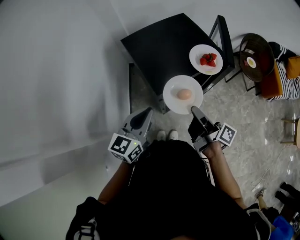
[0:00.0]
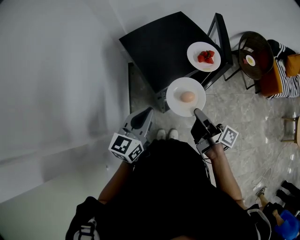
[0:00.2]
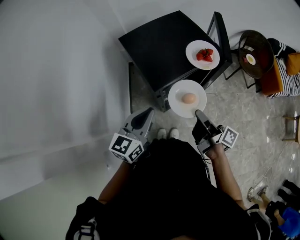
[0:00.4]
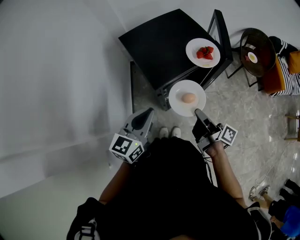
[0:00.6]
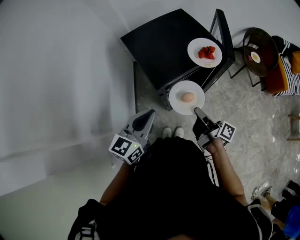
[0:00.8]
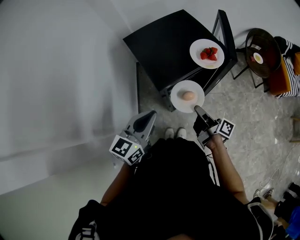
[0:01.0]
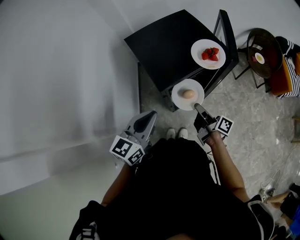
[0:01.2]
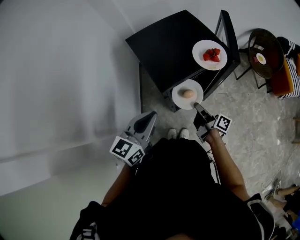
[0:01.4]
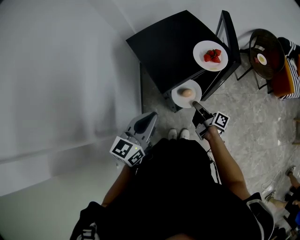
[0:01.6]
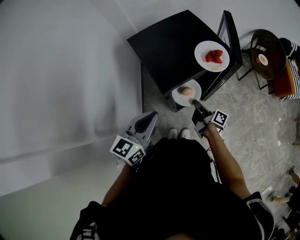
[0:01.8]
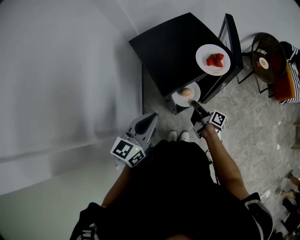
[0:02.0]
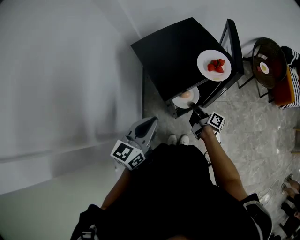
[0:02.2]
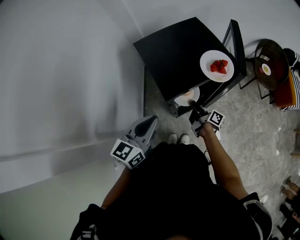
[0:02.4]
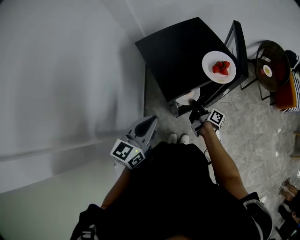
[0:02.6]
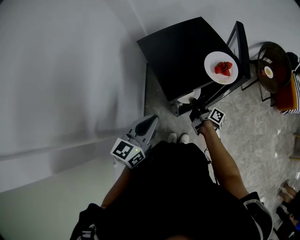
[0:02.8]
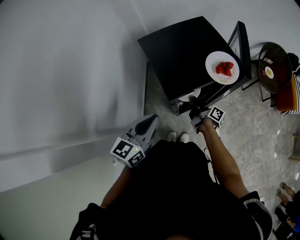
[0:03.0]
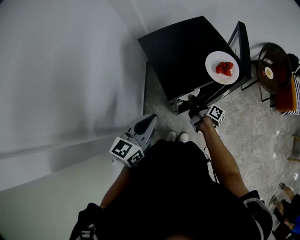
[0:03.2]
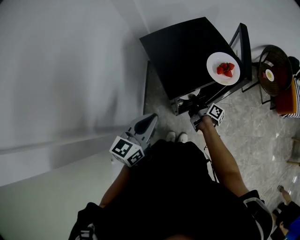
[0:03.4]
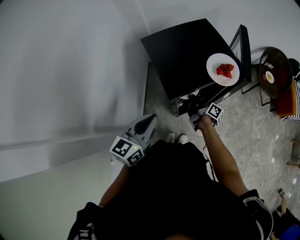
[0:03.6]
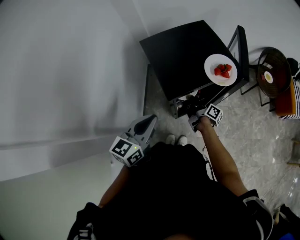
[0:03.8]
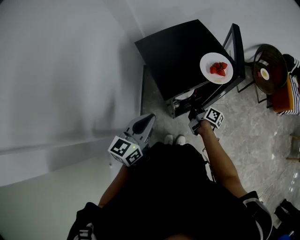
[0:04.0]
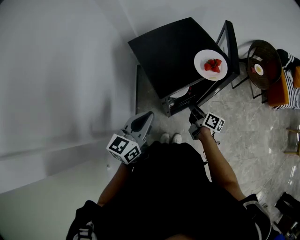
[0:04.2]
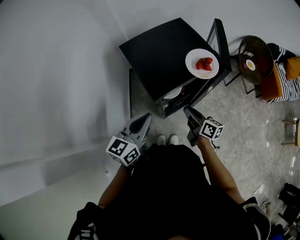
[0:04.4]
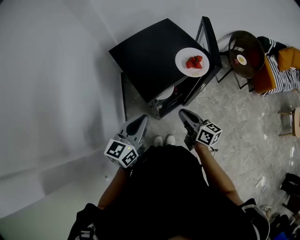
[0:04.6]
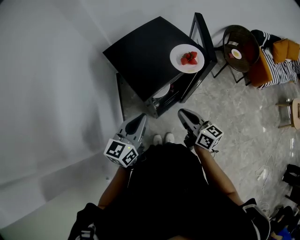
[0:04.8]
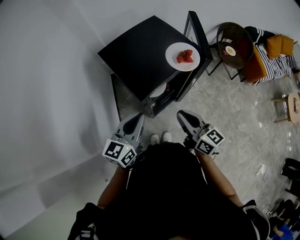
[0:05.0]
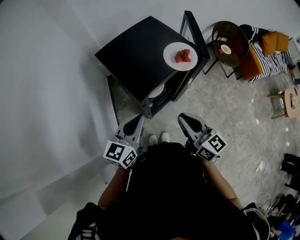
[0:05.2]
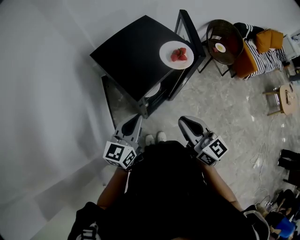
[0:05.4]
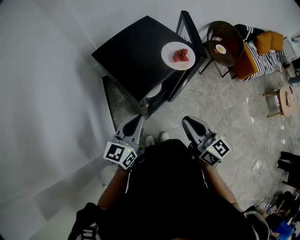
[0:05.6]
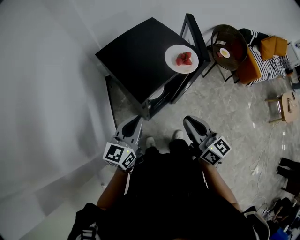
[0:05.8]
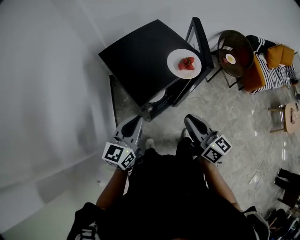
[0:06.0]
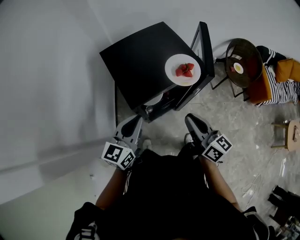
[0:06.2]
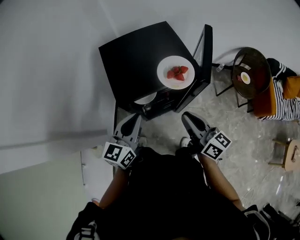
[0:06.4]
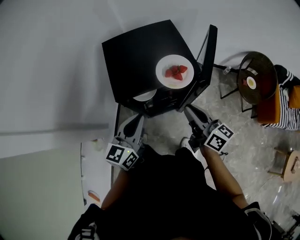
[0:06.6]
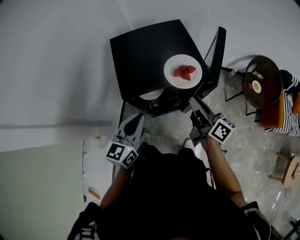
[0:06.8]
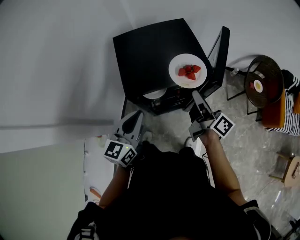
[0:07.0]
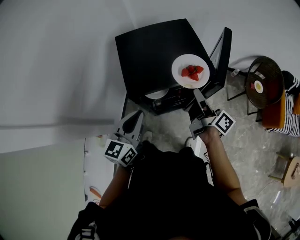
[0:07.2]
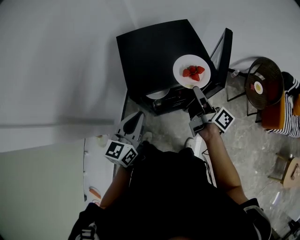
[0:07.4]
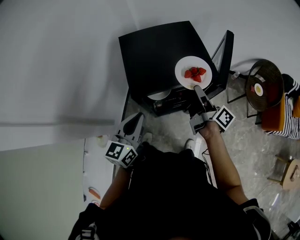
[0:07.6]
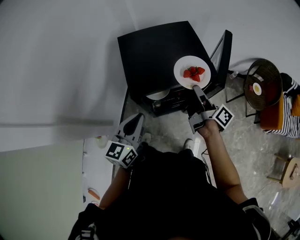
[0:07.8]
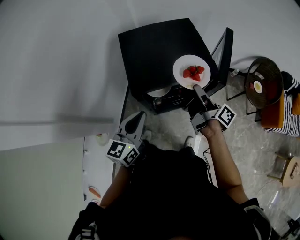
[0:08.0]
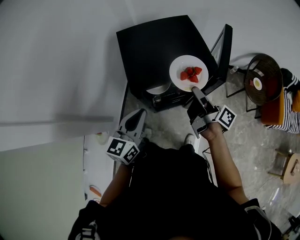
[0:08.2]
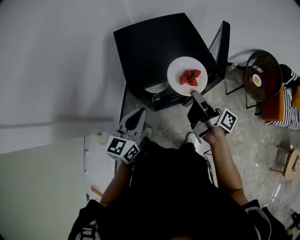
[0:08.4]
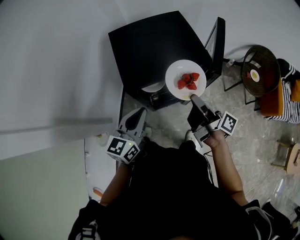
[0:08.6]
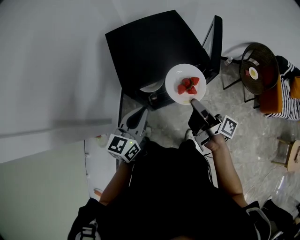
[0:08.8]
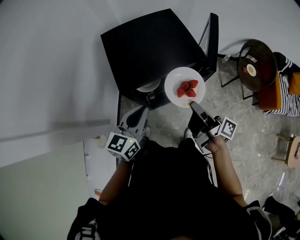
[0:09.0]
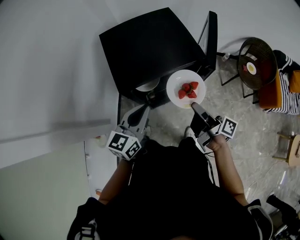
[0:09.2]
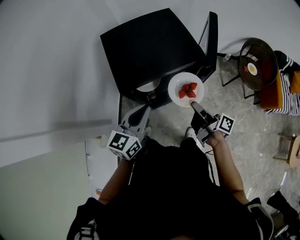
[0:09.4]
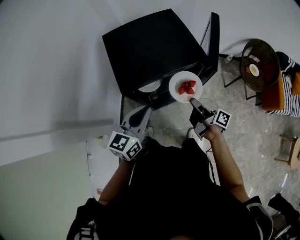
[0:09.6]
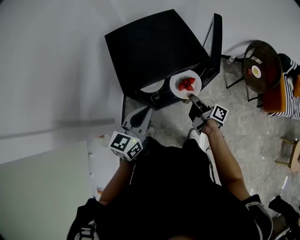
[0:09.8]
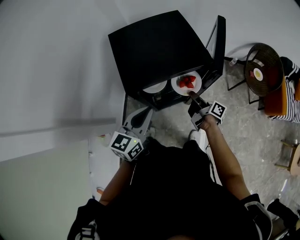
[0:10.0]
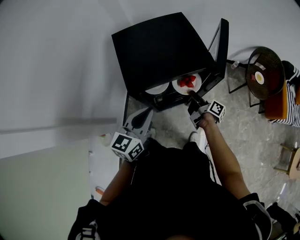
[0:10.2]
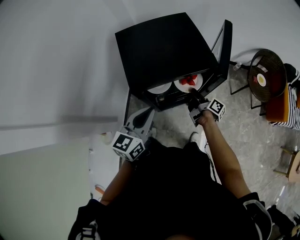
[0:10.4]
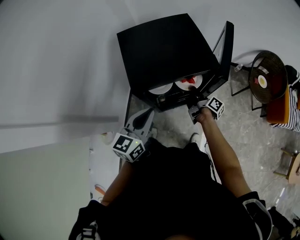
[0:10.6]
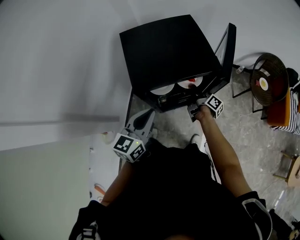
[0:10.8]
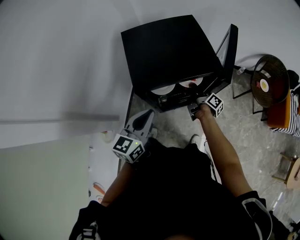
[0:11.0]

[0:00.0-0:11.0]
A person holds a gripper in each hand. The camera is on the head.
0:00.0 to 0:01.6: The right gripper moves downward, about 20 cm.
0:01.6 to 0:03.2: The right gripper goes roughly 10 cm forward.
0:03.2 to 0:04.8: The right gripper heads upward and backward, covering some 20 cm, and rotates around the line of its fingers by roughly 50 degrees, counterclockwise from behind.
0:04.8 to 0:06.2: The right gripper goes about 10 cm to the right and upward.
0:06.2 to 0:07.8: The left gripper reaches some 10 cm to the right, then returns, while the right gripper heads forward and to the right, covering roughly 15 cm, and twists roughly 50 degrees clockwise, seen from behind.
0:07.8 to 0:09.4: The left gripper is displaced to the right by about 5 cm; the right gripper heads backward and downward, covering about 15 cm.
0:09.4 to 0:11.0: The right gripper heads forward and downward, covering about 20 cm.

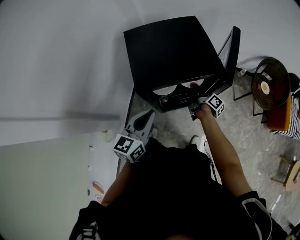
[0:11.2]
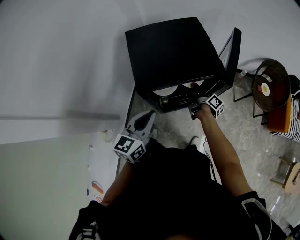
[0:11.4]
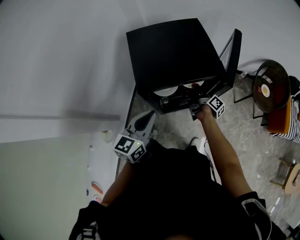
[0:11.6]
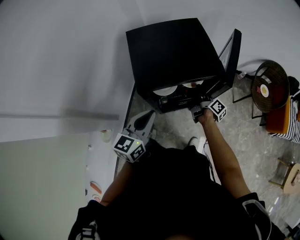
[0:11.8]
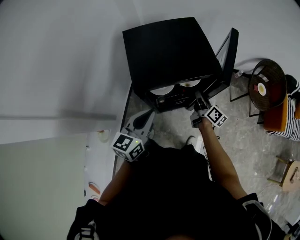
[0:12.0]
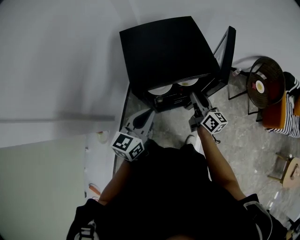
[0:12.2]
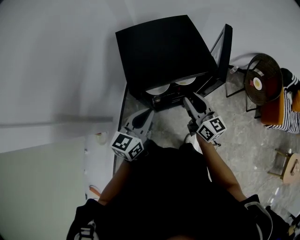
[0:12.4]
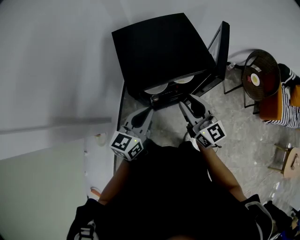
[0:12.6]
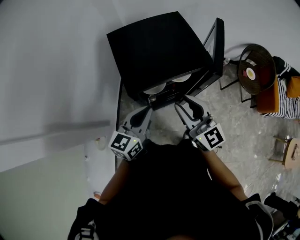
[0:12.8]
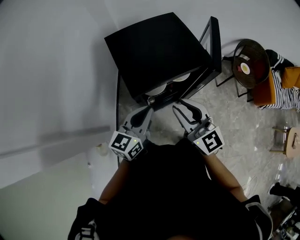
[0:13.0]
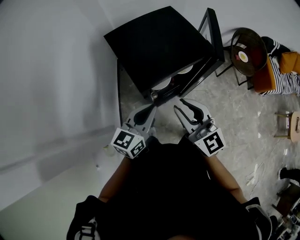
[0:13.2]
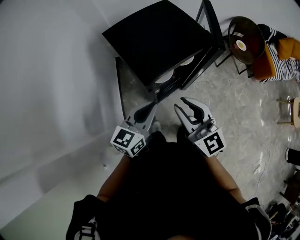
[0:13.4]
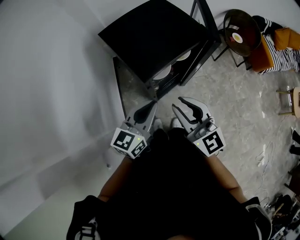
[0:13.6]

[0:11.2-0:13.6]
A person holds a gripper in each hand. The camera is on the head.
0:11.2 to 0:12.4: The right gripper moves upward and backward, some 20 cm, twists approximately 60 degrees counterclockwise, seen from behind, and opens.
0:12.4 to 0:13.6: The right gripper travels to the left, upward and backward by approximately 20 cm, and changes its angle by some 30 degrees; the left gripper goes some 5 cm to the left, and turns by about 20 degrees.

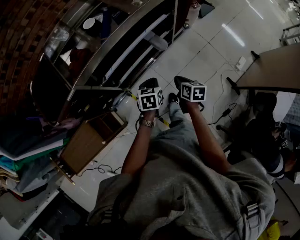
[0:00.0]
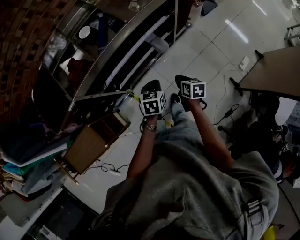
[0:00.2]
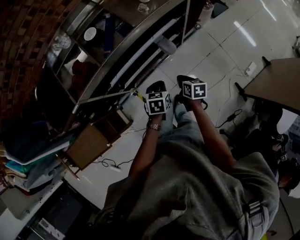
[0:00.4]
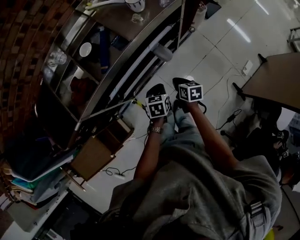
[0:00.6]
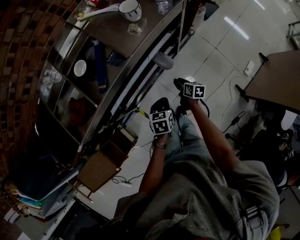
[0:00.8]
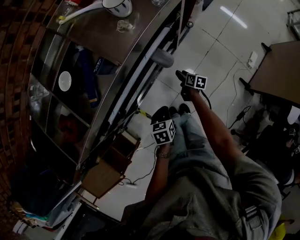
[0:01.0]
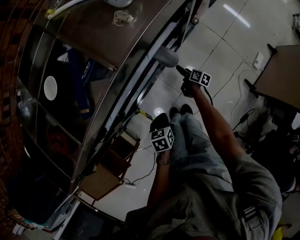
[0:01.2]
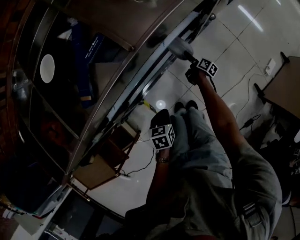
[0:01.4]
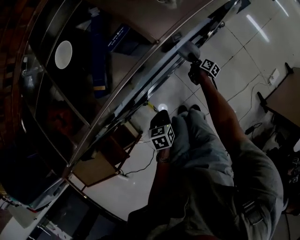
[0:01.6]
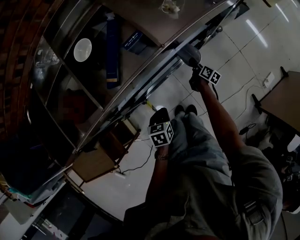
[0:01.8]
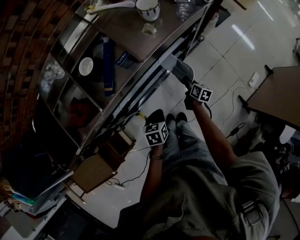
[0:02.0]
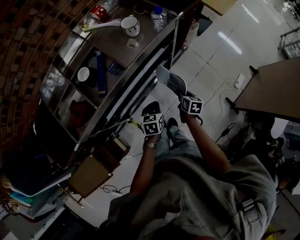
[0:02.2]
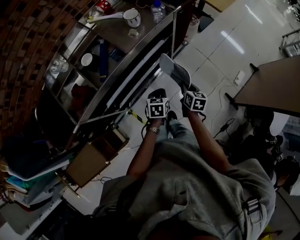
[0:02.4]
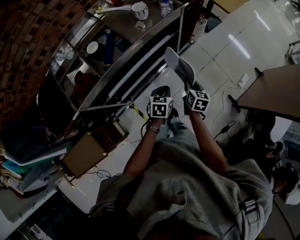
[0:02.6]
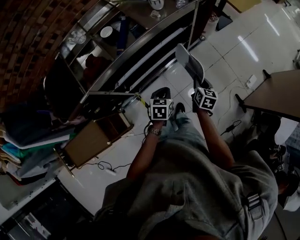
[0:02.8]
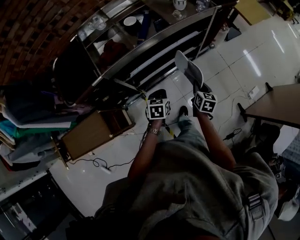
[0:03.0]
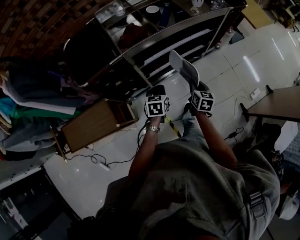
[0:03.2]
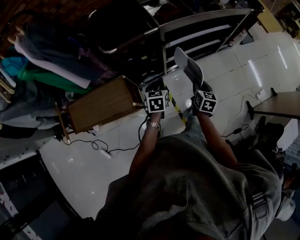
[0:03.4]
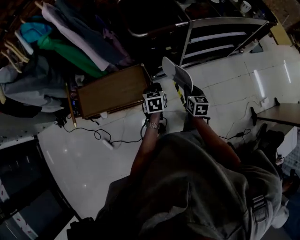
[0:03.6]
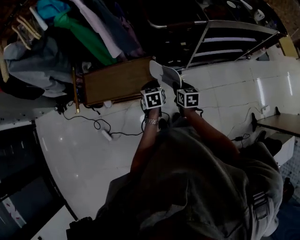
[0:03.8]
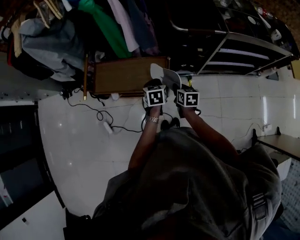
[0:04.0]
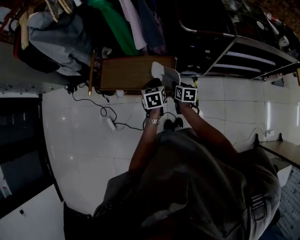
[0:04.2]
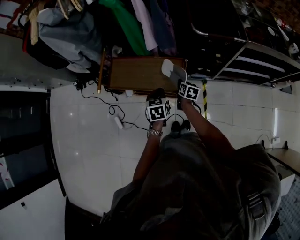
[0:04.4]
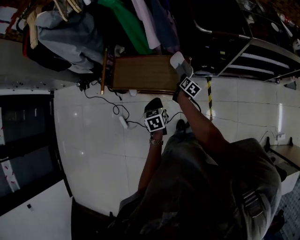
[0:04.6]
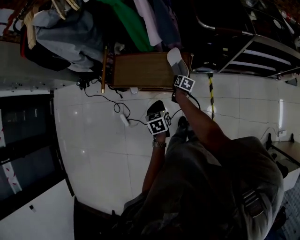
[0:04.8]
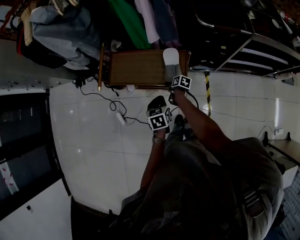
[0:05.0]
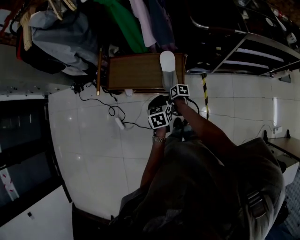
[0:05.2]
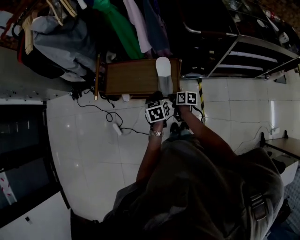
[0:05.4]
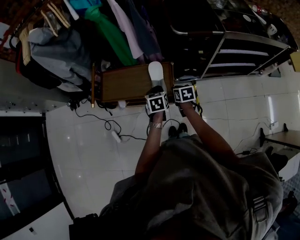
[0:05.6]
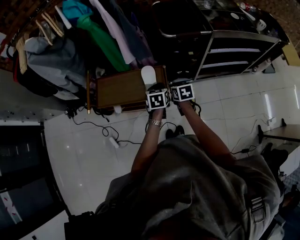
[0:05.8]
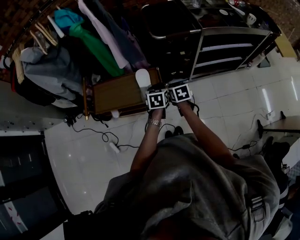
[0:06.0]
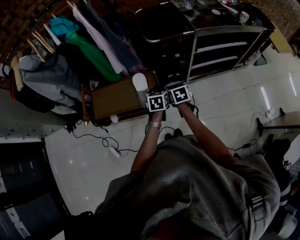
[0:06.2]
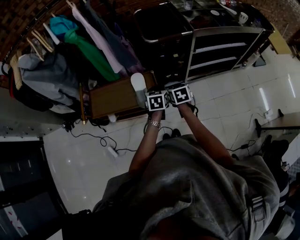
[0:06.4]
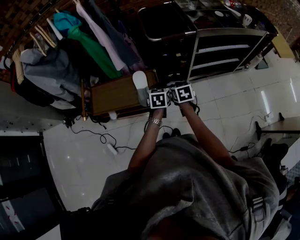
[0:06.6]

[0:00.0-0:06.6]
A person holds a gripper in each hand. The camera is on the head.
0:00.0 to 0:01.6: The left gripper travels downward by about 25 cm. Meanwhile the right gripper goes roughly 60 cm downward and forward, swivels about 40 degrees, and opens, then closes once more.
0:01.6 to 0:03.2: The right gripper shifts some 60 cm upward and backward, and rolls counterclockwise, seen from behind, by about 60 degrees; the left gripper moves upward and backward, roughly 35 cm.
0:03.2 to 0:05.0: The two grippers travel together, approximately 70 cm. The left gripper swivels roughly 40 degrees. Meanwhile the right gripper swivels some 60 degrees, and opens up.
0:05.0 to 0:06.6: The left gripper ends up roughly 25 cm from where it was, and swivels approximately 30 degrees. The right gripper shifts some 25 cm upward, turns by approximately 50 degrees, and closes up.

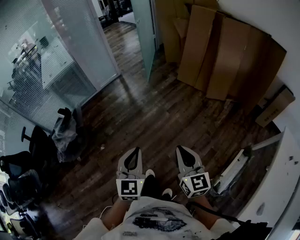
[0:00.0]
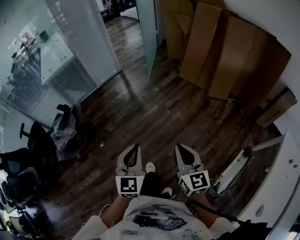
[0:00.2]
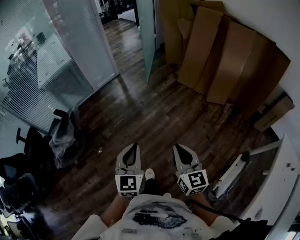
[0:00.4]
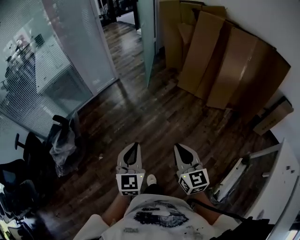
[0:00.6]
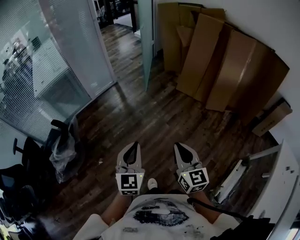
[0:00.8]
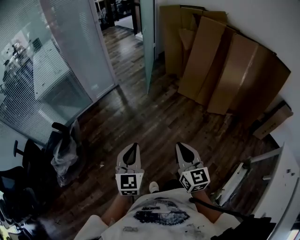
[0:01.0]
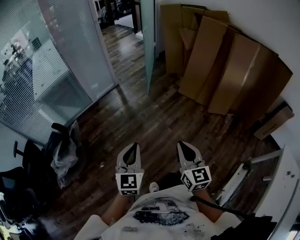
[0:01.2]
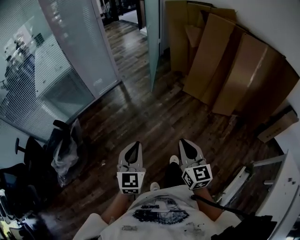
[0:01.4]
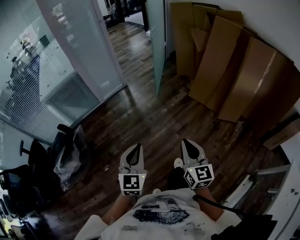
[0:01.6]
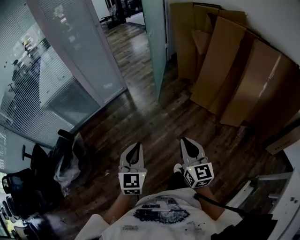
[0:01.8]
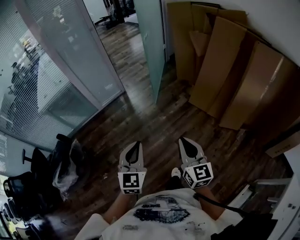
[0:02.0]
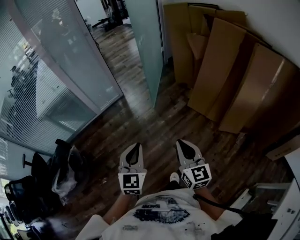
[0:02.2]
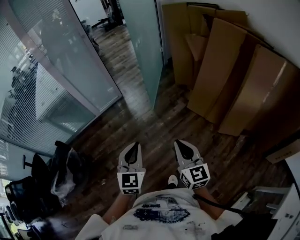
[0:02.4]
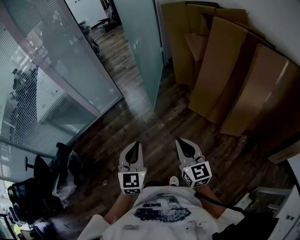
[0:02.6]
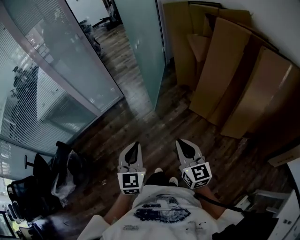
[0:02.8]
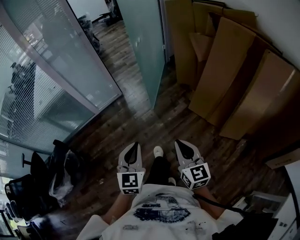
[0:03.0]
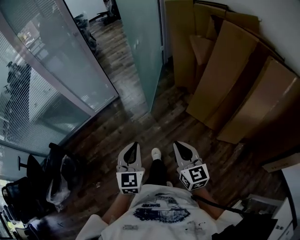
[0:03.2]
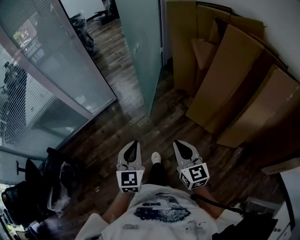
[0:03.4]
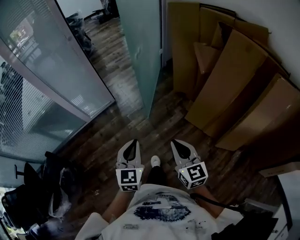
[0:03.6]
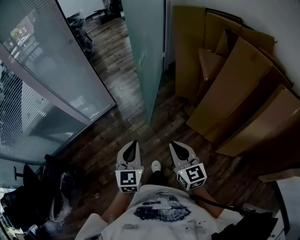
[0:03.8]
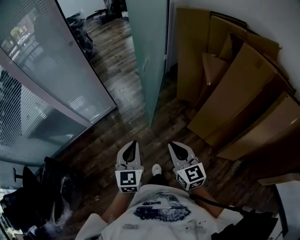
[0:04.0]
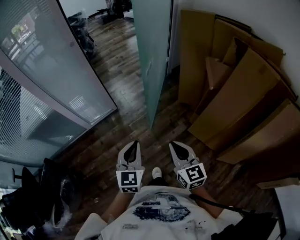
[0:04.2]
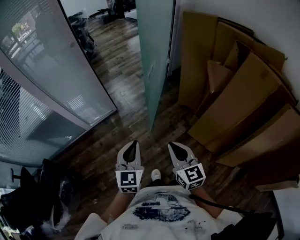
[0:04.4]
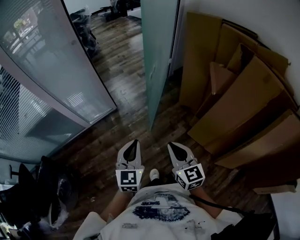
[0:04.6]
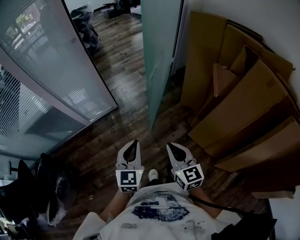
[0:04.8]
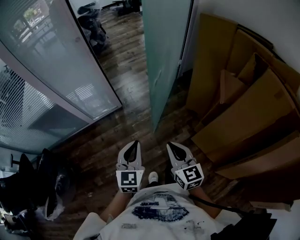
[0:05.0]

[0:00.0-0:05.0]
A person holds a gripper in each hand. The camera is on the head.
0:00.0 to 0:01.6: The grippers both shift forward by roughly 30 cm.
0:01.6 to 0:03.4: The right gripper is displaced forward by about 35 cm. The left gripper travels forward and to the right by some 40 cm.
0:03.4 to 0:05.0: Both grippers travel together forward, about 25 cm.
